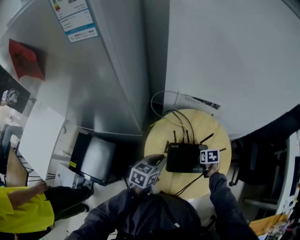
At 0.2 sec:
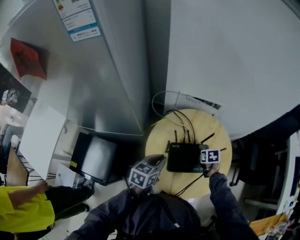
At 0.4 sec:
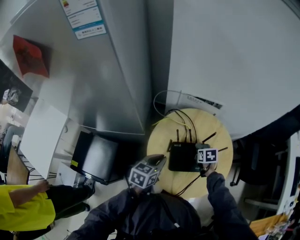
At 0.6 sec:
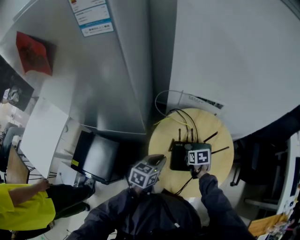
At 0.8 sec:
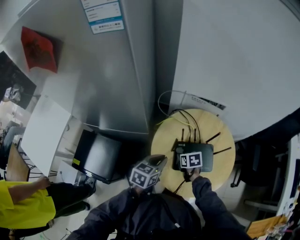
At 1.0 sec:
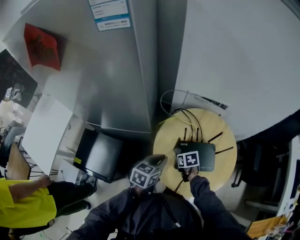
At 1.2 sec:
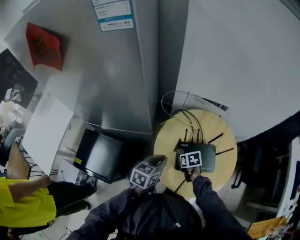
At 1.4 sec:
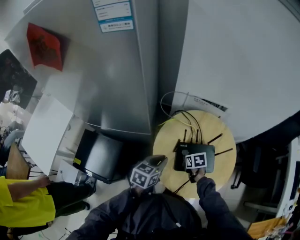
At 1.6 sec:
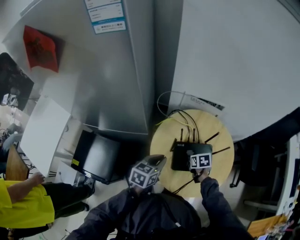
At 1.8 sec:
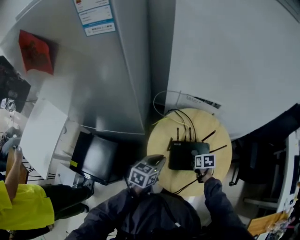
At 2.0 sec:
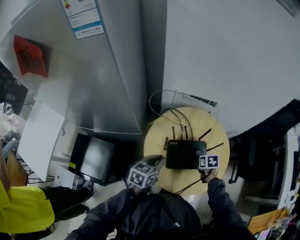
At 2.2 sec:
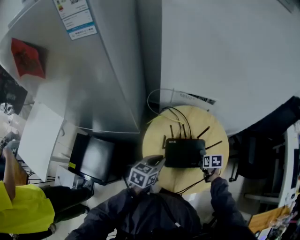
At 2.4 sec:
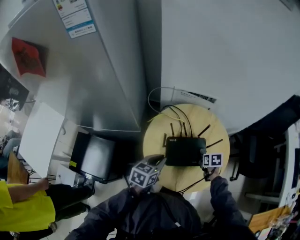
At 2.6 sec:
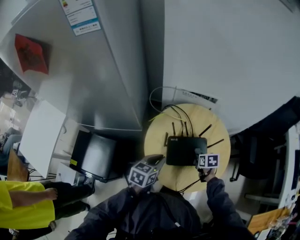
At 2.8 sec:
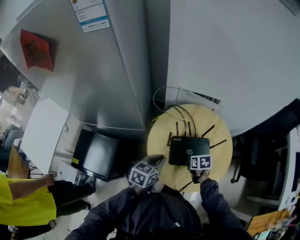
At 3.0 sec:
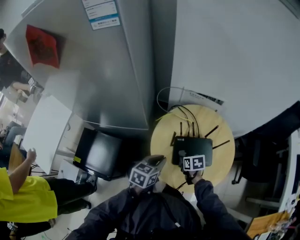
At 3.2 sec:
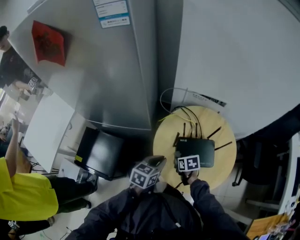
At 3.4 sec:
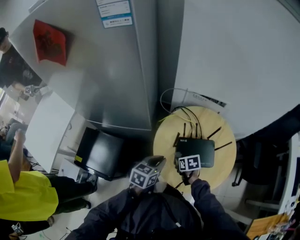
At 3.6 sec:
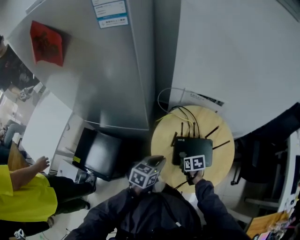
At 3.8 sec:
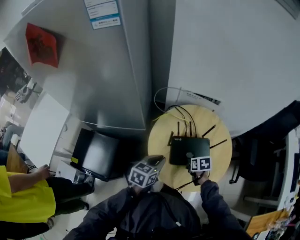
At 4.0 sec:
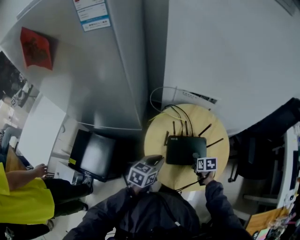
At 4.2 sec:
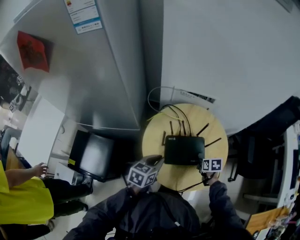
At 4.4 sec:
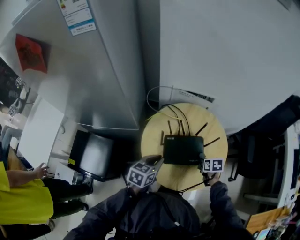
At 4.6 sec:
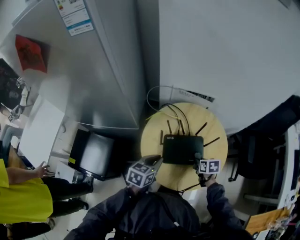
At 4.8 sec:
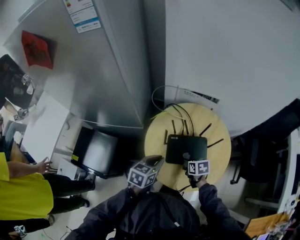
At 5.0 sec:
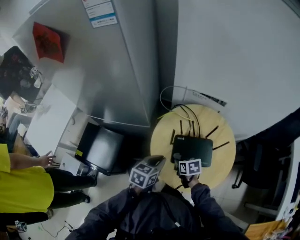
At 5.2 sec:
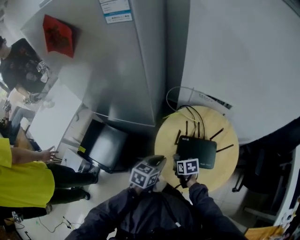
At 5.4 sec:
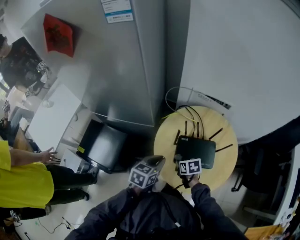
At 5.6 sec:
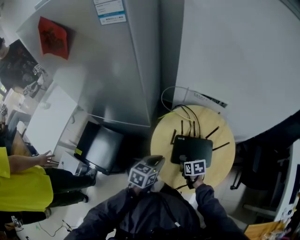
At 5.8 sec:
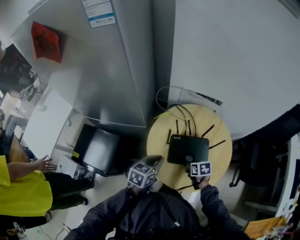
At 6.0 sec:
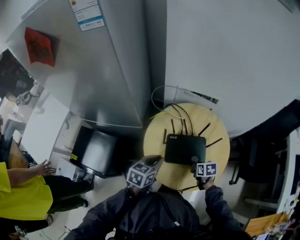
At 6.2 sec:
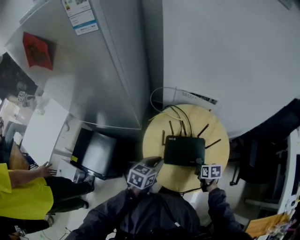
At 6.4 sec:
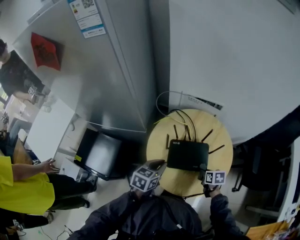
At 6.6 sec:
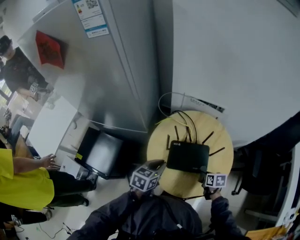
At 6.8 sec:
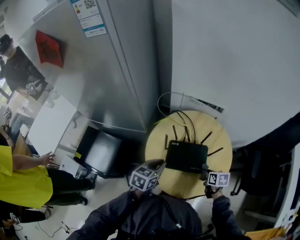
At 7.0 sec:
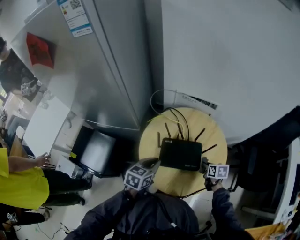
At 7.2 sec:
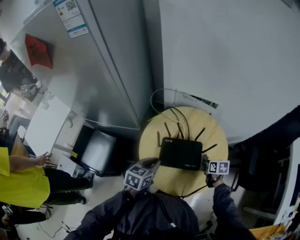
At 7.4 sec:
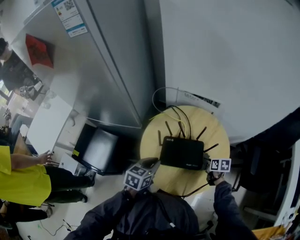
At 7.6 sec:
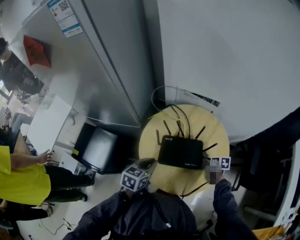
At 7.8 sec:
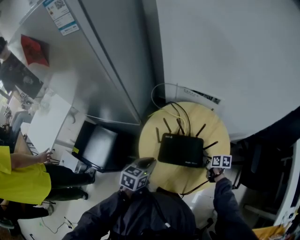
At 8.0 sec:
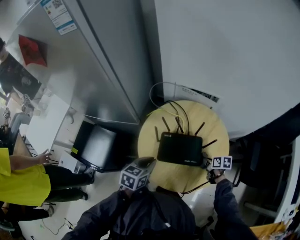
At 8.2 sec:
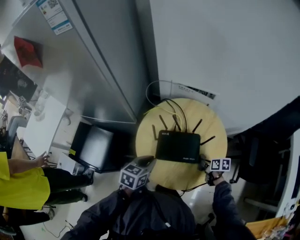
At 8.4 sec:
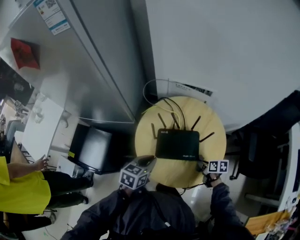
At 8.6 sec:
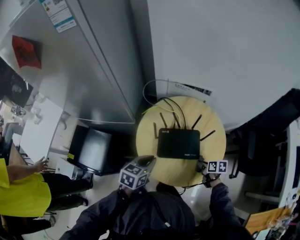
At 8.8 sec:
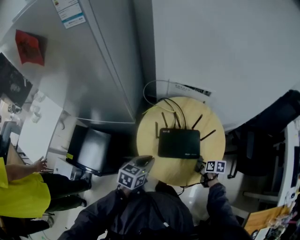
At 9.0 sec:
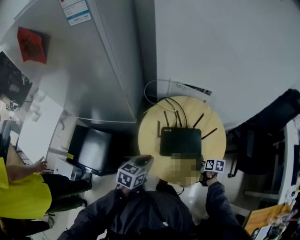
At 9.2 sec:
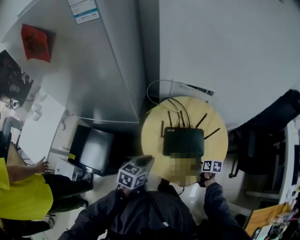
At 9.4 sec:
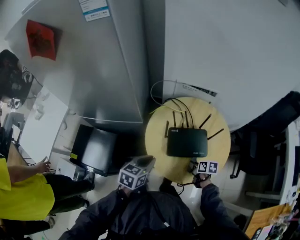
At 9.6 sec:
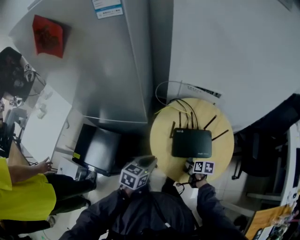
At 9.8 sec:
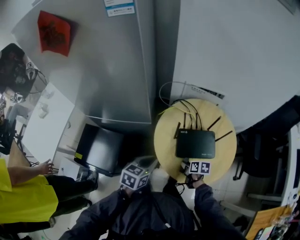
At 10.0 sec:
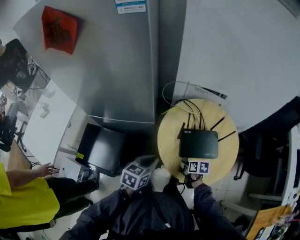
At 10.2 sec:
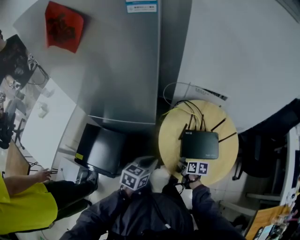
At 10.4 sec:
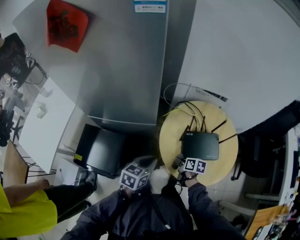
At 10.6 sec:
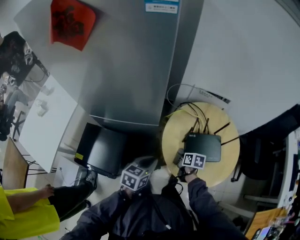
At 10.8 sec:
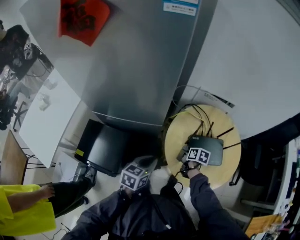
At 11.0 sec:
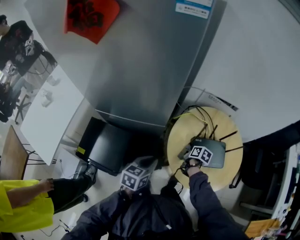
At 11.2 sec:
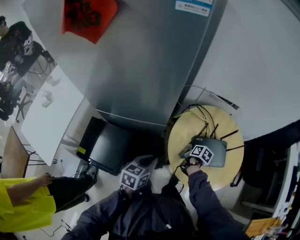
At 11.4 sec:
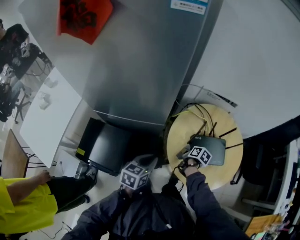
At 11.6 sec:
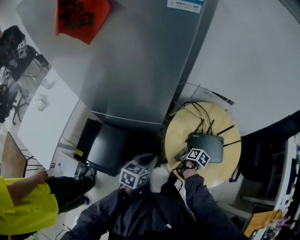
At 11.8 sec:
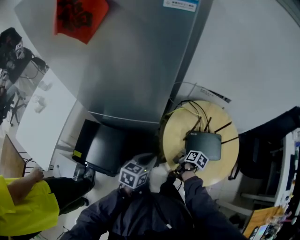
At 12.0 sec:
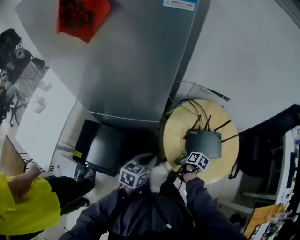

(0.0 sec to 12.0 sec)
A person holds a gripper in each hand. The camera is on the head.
0.0 sec - 1.6 sec: The right gripper goes approximately 10 cm to the left.
1.6 sec - 3.0 sec: The right gripper travels to the right and back again, roughly 15 cm each way.
3.0 sec - 4.4 sec: The right gripper moves to the right, roughly 20 cm.
4.4 sec - 6.0 sec: The right gripper moves about 25 cm to the left and comes back.
6.0 sec - 7.6 sec: The right gripper moves to the right and forward, some 10 cm.
7.6 sec - 9.0 sec: The right gripper shifts approximately 10 cm backward.
9.0 sec - 10.4 sec: The left gripper goes approximately 10 cm to the left, while the right gripper is displaced to the left by about 25 cm.
10.4 sec - 12.0 sec: The right gripper goes forward and returns, about 10 cm each way, and turns by about 20 degrees.

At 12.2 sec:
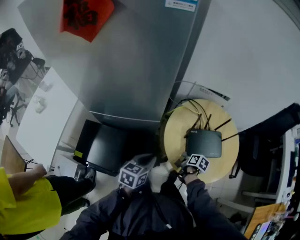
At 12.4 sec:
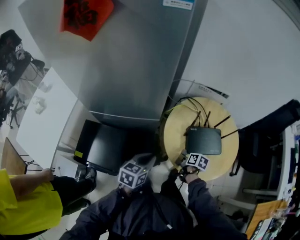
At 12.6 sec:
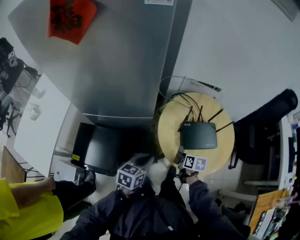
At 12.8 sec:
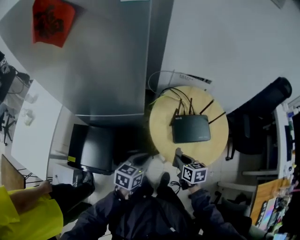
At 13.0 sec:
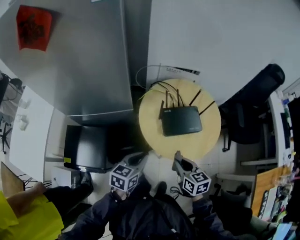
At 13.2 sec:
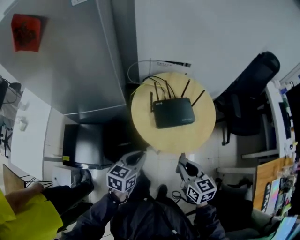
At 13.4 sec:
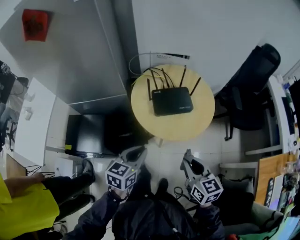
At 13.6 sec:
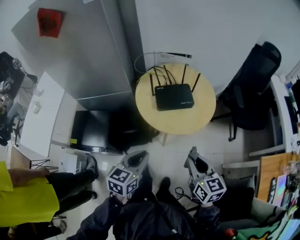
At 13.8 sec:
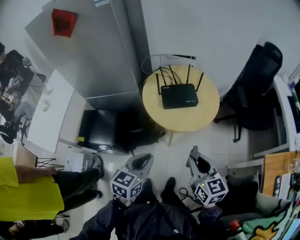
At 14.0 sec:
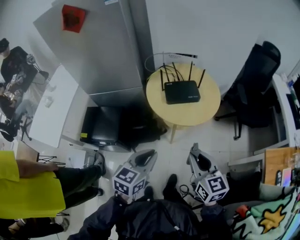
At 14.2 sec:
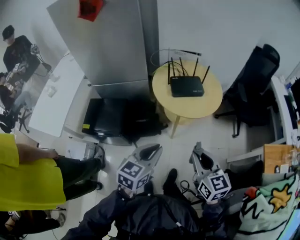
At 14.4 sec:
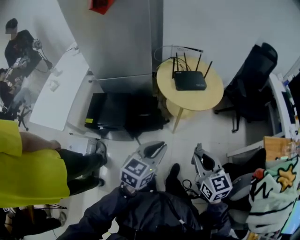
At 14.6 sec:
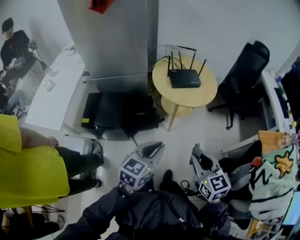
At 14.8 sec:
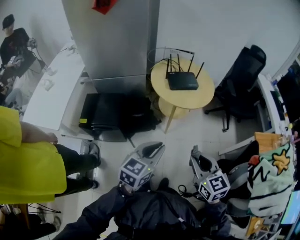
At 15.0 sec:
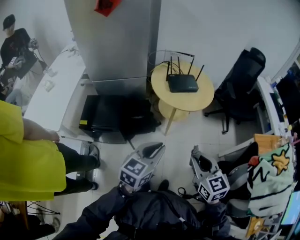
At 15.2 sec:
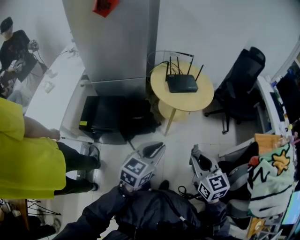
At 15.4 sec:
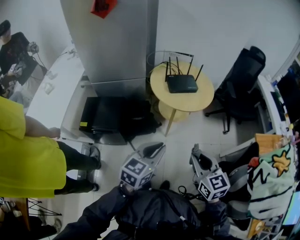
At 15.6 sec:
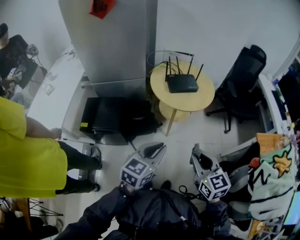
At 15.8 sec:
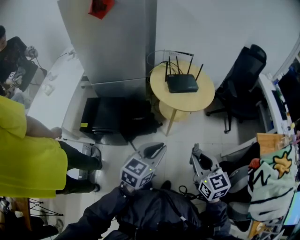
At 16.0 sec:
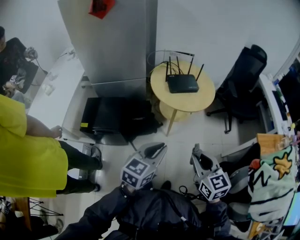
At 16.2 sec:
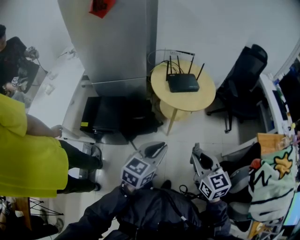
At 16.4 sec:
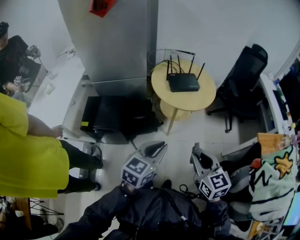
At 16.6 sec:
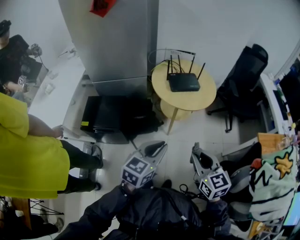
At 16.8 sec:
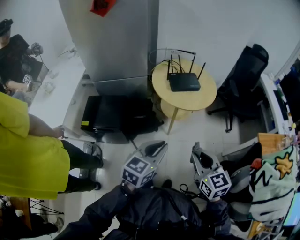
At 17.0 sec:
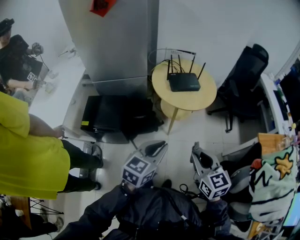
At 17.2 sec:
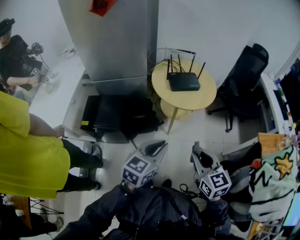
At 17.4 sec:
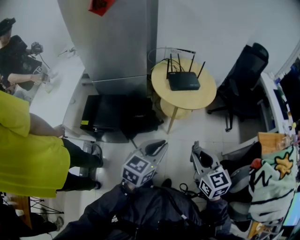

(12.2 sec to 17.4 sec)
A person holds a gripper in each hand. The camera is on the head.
12.2 sec - 14.0 sec: The left gripper is displaced backward, to the right and upward by approximately 40 cm; the right gripper heads backward and upward, covering some 50 cm, and points its fingers roughly 40 degrees further upward.
14.0 sec - 15.6 sec: Both grippers travel together backward, approximately 15 cm.
15.6 sec - 17.4 sec: The two grippers keep their place.

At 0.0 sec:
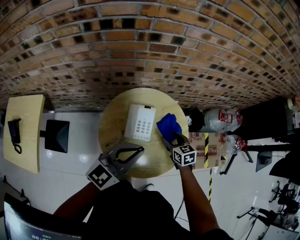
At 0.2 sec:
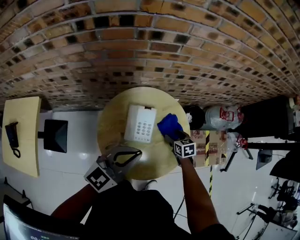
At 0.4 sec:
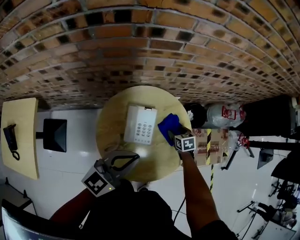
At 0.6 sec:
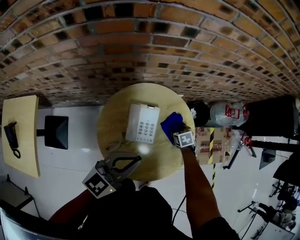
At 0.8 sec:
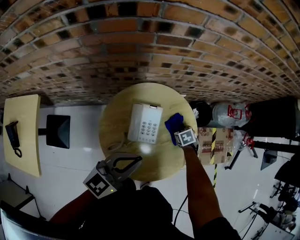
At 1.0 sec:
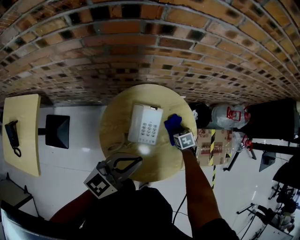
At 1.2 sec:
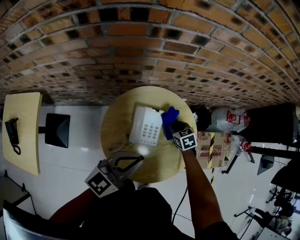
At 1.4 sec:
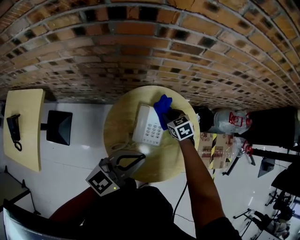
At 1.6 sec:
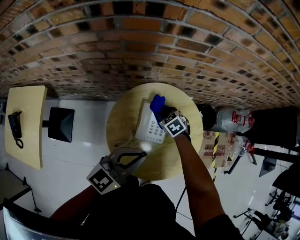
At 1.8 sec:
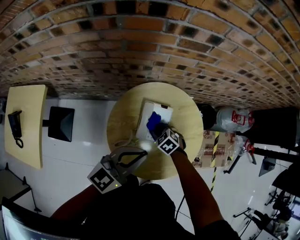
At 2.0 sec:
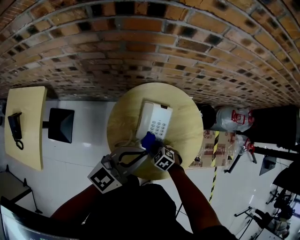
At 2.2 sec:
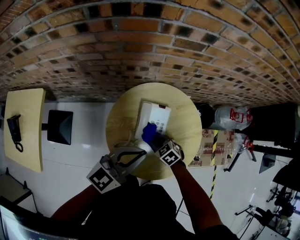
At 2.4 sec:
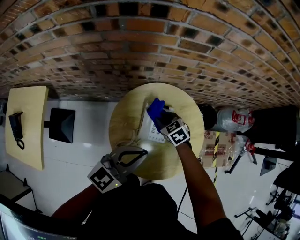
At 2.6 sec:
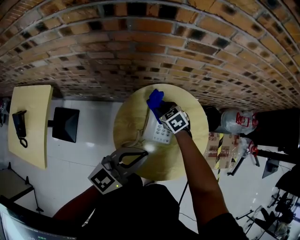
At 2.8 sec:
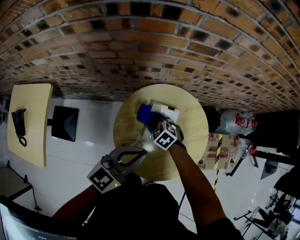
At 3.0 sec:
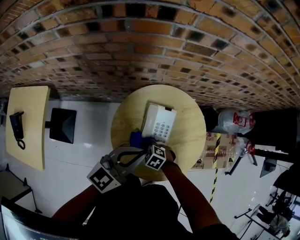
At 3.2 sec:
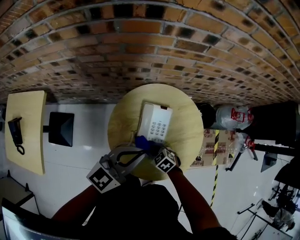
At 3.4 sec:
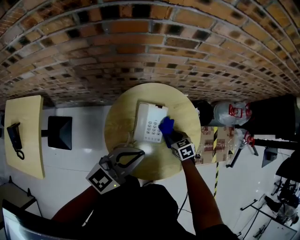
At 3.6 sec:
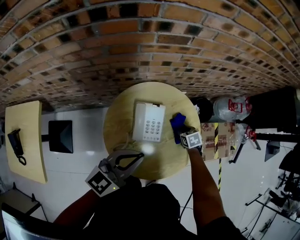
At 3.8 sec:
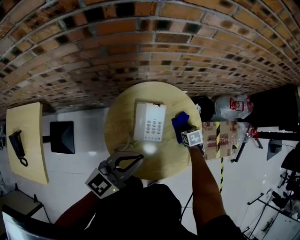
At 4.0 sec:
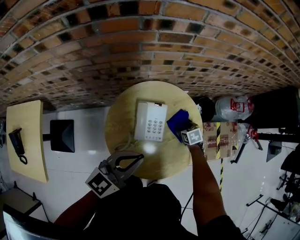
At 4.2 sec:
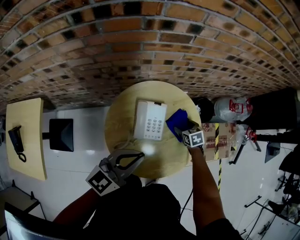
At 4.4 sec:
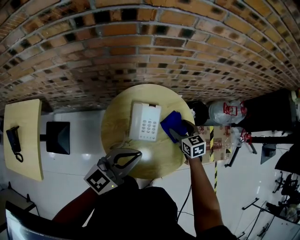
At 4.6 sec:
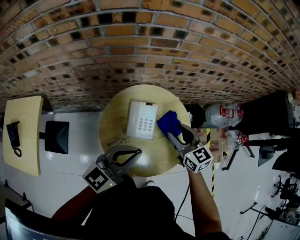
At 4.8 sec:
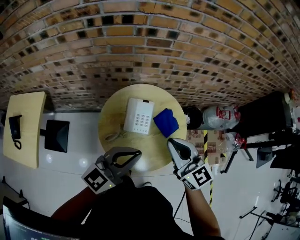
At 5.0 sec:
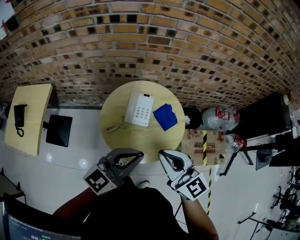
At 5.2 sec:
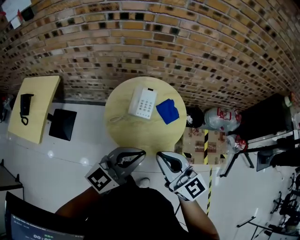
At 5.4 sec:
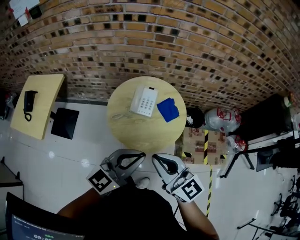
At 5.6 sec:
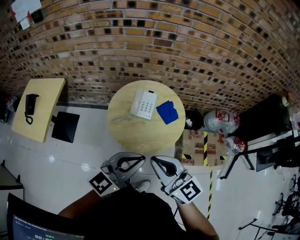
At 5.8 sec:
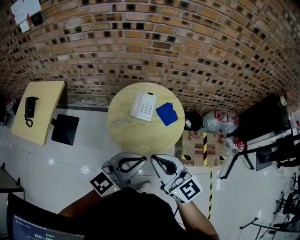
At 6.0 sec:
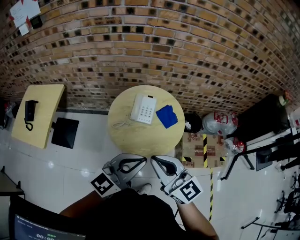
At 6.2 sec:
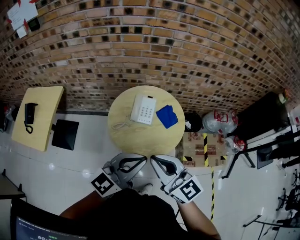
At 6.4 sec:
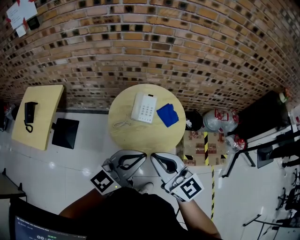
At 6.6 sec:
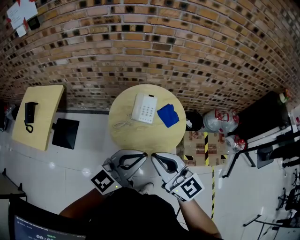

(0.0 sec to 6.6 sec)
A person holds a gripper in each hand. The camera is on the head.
0.0 sec - 1.6 sec: The right gripper travels to the left, forward and downward by about 20 cm, swivels some 30 degrees, and closes up. The left gripper moves downward and to the left, approximately 10 cm.
1.6 sec - 3.2 sec: The right gripper swings up and down, roughly 10 cm each way, with 2 reversals.
3.2 sec - 5.0 sec: The right gripper is displaced upward by approximately 40 cm, points its fingers about 60 degrees further upward, and opens and closes again. Meanwhile the left gripper ends up approximately 25 cm from where it was.
5.0 sec - 6.6 sec: The two grippers go approximately 10 cm backward.
